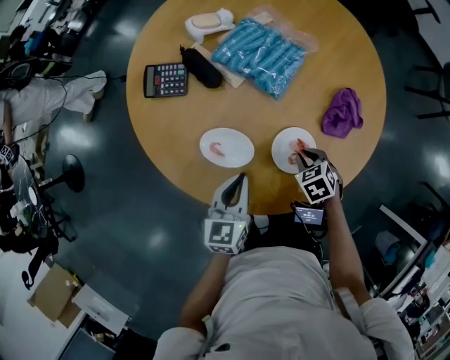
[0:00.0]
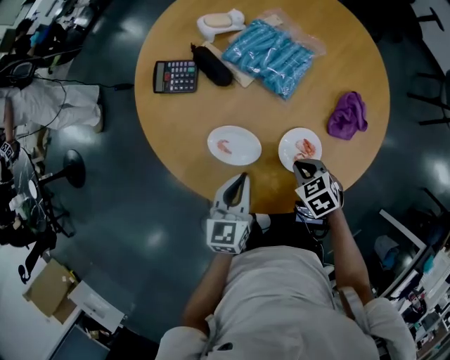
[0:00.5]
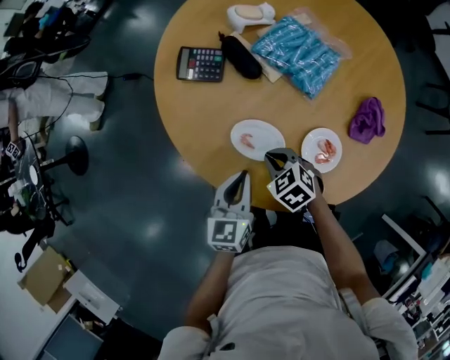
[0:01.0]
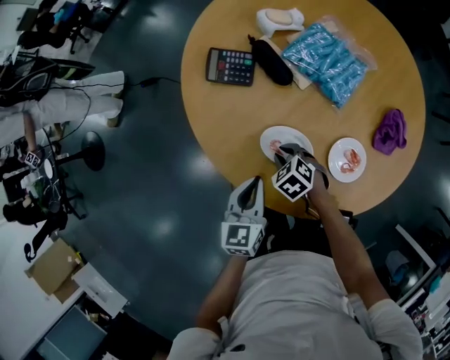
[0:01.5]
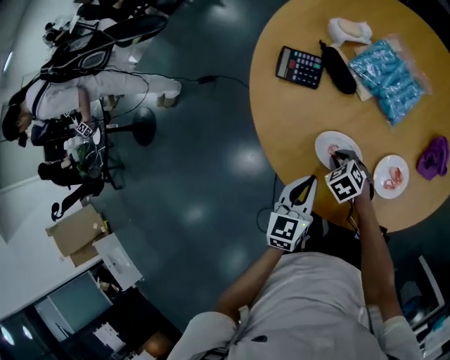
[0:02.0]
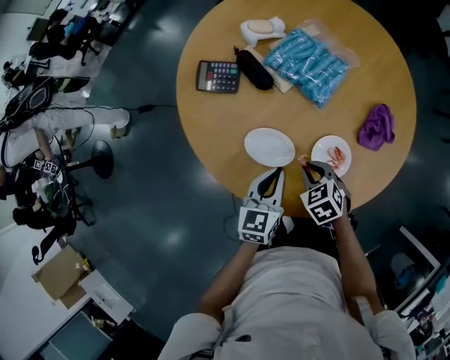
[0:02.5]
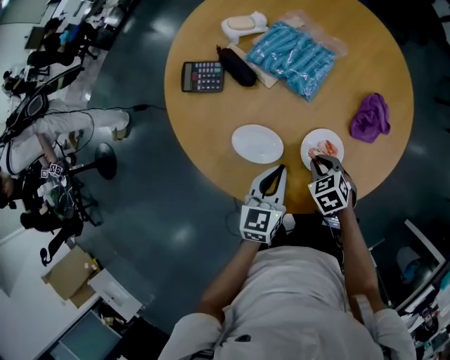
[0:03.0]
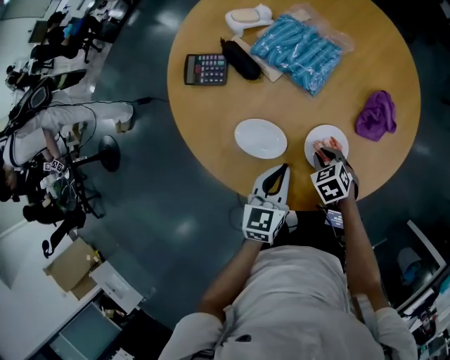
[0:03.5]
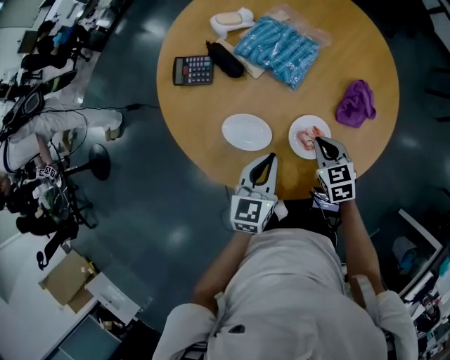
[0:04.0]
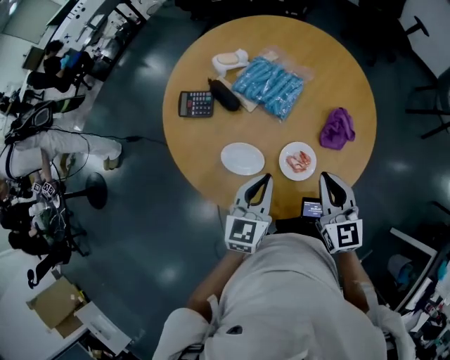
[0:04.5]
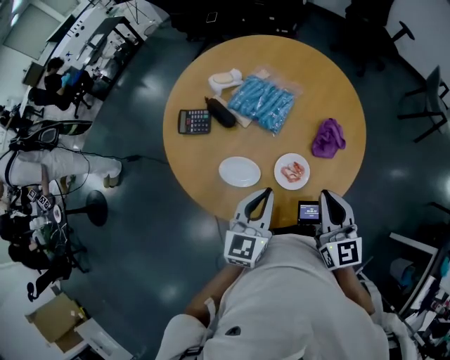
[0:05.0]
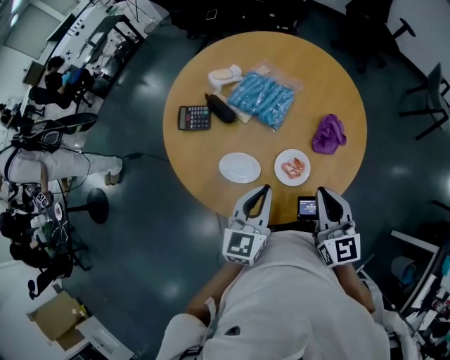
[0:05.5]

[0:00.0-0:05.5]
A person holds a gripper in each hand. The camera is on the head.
0:00.0 to 0:02.0: The left gripper shifts roughly 15 cm to the left, while the right gripper shifts roughly 25 cm to the left.
0:02.0 to 0:03.5: Both grippers move to the right, roughly 20 cm.
0:03.5 to 0:05.5: The right gripper moves upward, some 30 cm, and tilts its fingers some 60 degrees upward; the left gripper is displaced upward by approximately 15 cm.

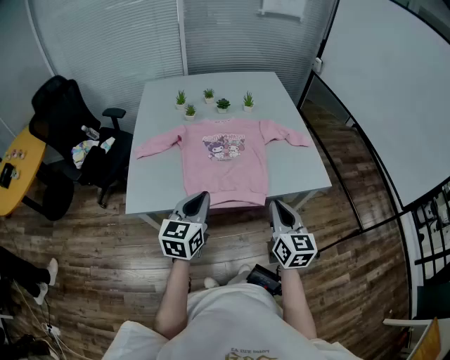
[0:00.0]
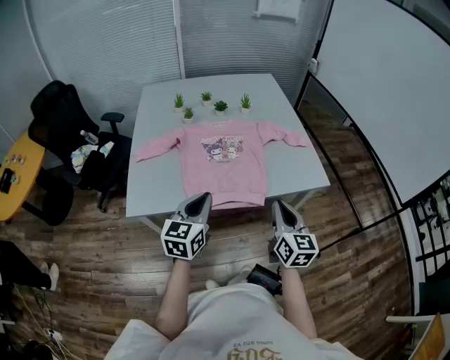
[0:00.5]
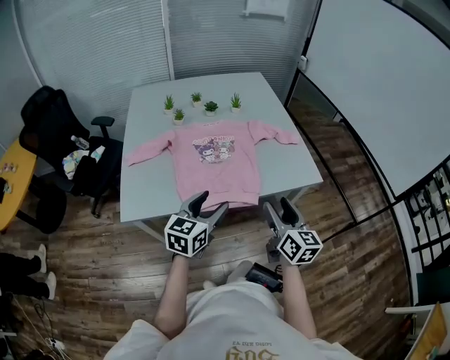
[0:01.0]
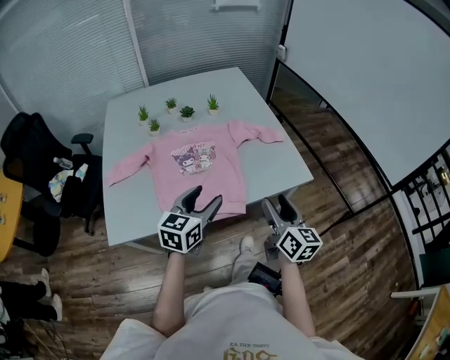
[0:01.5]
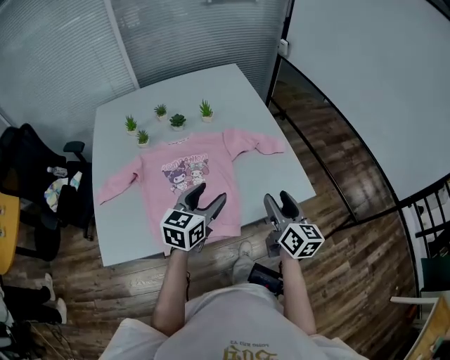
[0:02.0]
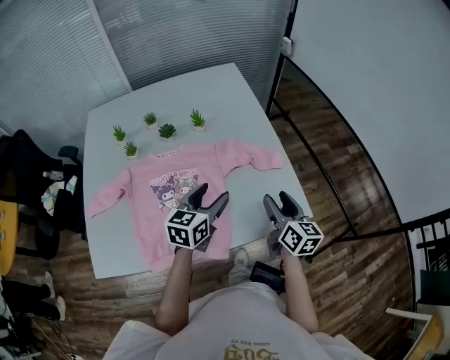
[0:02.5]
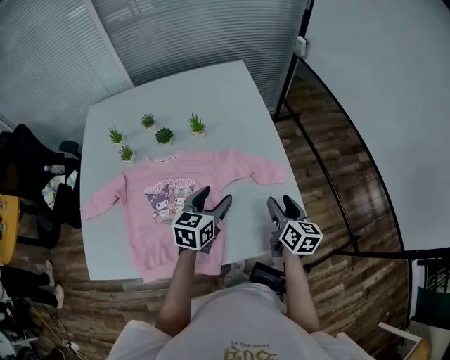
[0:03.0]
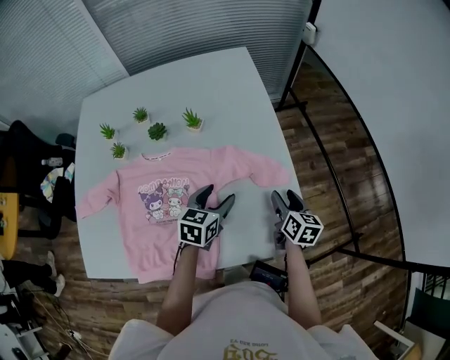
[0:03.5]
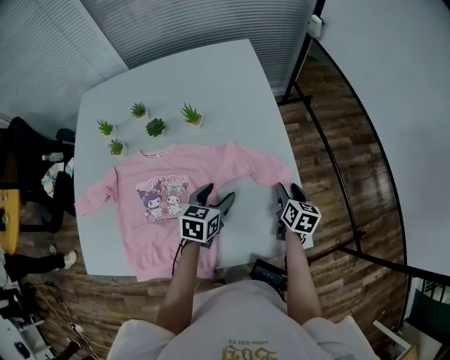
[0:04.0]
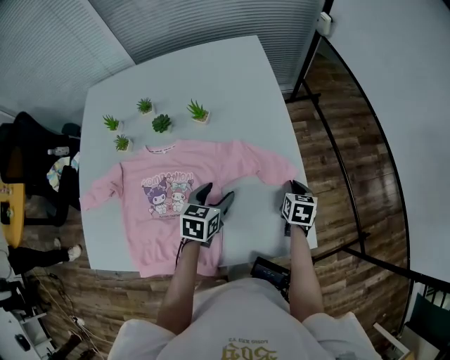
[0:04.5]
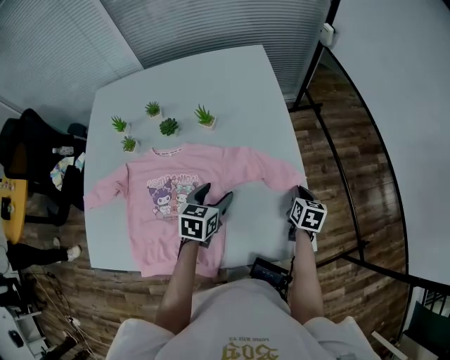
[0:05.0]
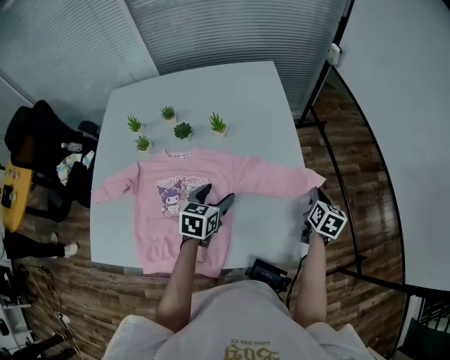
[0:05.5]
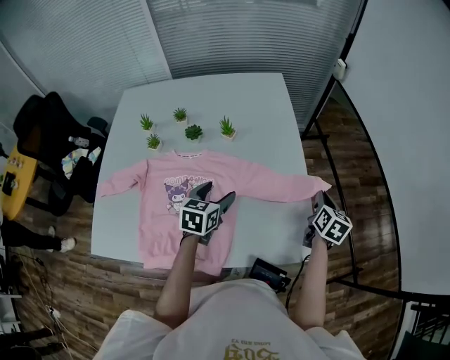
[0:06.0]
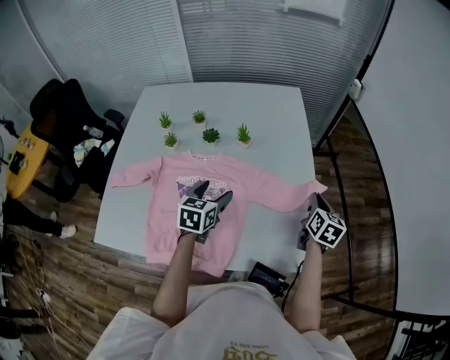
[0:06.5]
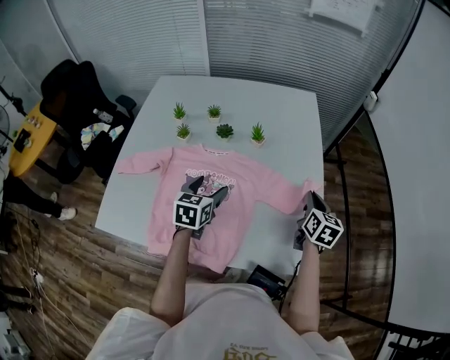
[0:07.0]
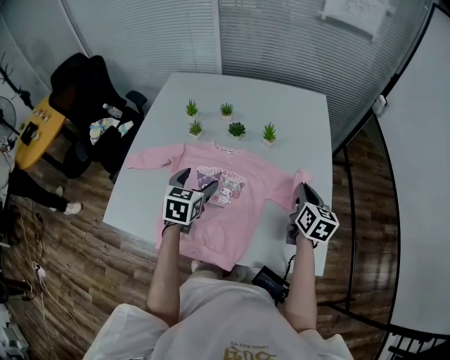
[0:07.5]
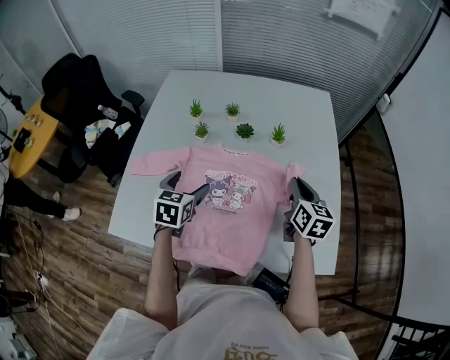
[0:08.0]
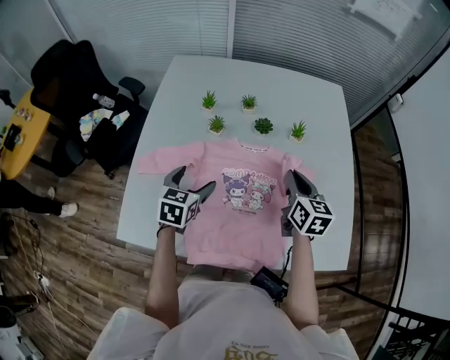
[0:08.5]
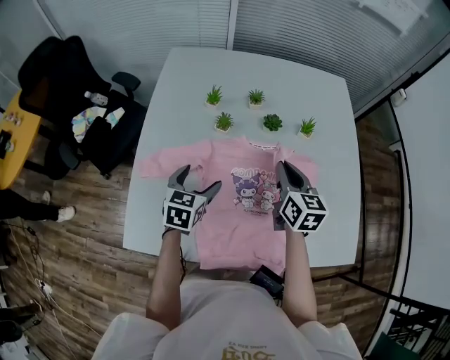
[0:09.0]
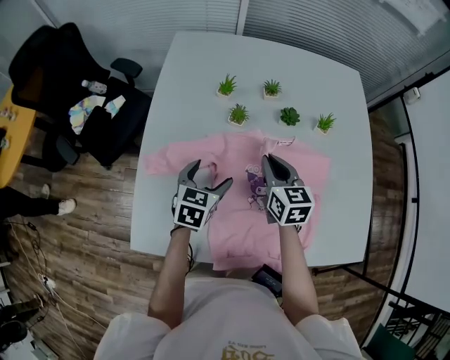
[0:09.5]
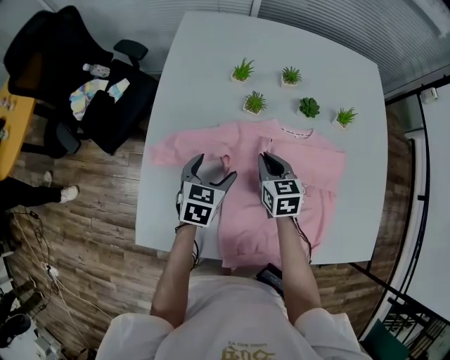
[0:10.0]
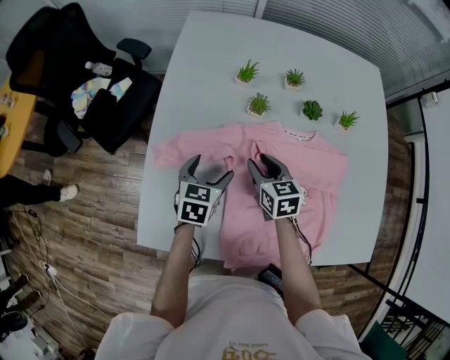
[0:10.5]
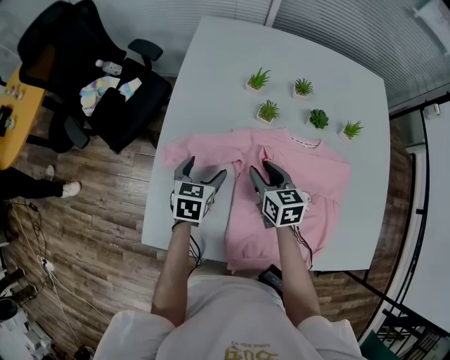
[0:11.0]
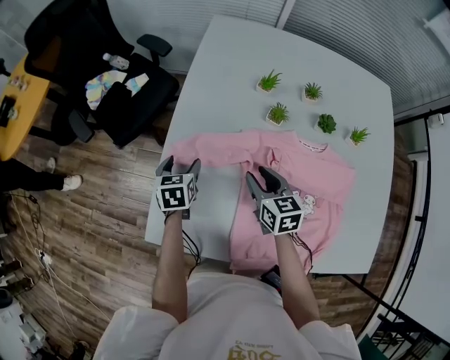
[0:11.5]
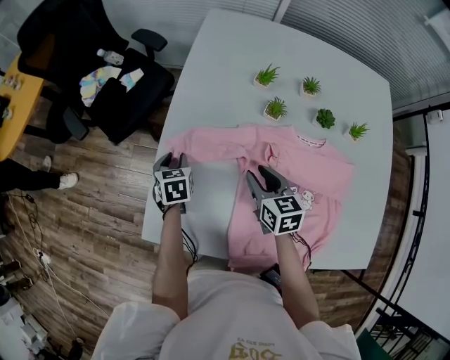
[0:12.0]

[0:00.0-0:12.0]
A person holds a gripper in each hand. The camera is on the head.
0:00.0 to 0:02.0: The two grippers go approximately 25 cm forward and to the right. The right gripper opens its fingers. The left gripper opens.
0:02.0 to 0:04.0: The grippers both shift forward and downward by some 30 cm. The left gripper swivels about 20 degrees. The right gripper turns by roughly 30 degrees.
0:04.0 to 0:06.0: The left gripper heads upward and to the left, covering approximately 10 cm. The right gripper travels upward by approximately 10 cm, and closes up.
0:06.0 to 0:08.0: The two grippers go approximately 30 cm to the left. The right gripper rotates approximately 30 degrees.
0:08.0 to 0:10.0: The right gripper heads to the left and downward, covering about 35 cm, and rotates approximately 20 degrees. The left gripper goes about 20 cm to the left, downward and forward.
0:10.0 to 0:12.0: The right gripper heads to the left, covering roughly 10 cm, and opens; the left gripper is displaced to the left by about 20 cm, turns by about 30 degrees, and closes its fingers.

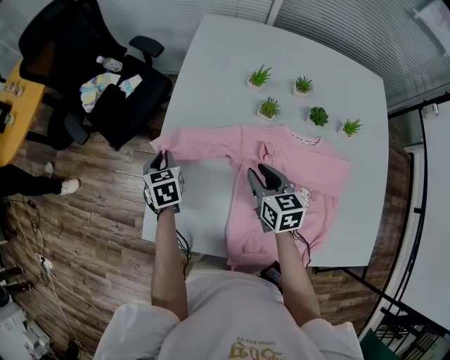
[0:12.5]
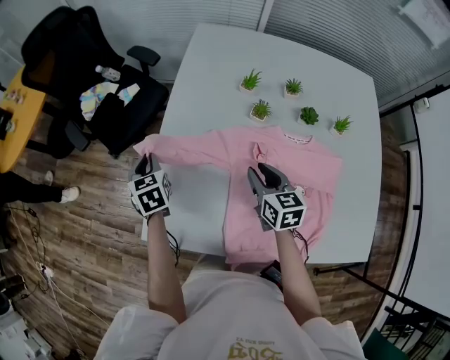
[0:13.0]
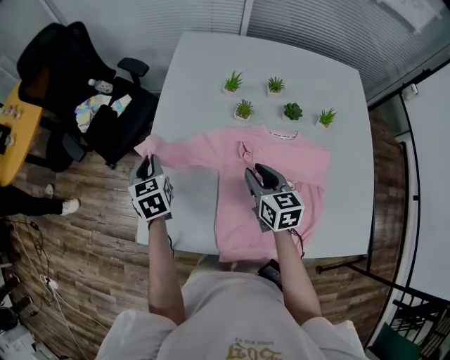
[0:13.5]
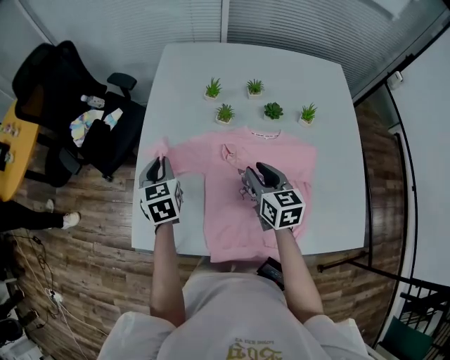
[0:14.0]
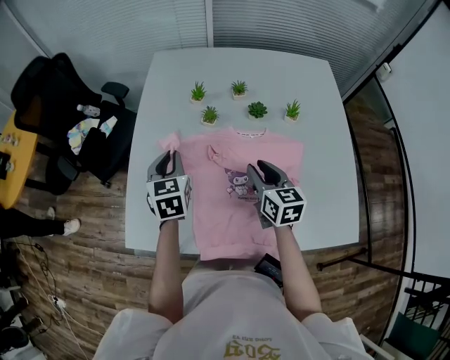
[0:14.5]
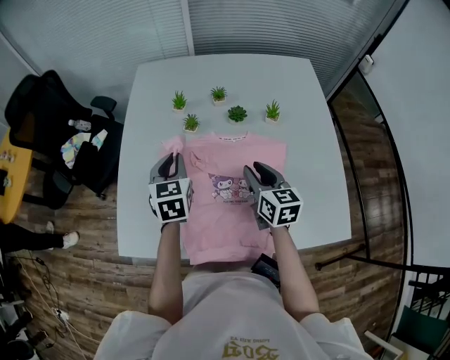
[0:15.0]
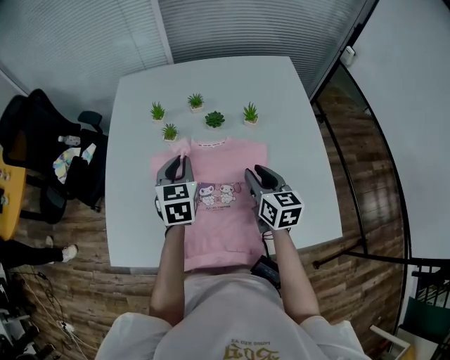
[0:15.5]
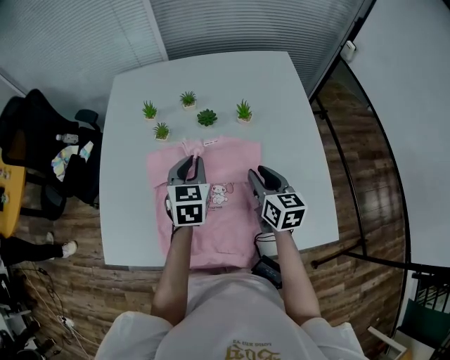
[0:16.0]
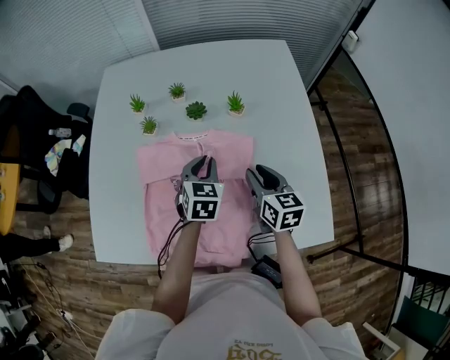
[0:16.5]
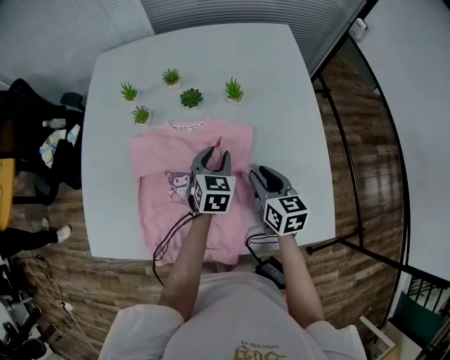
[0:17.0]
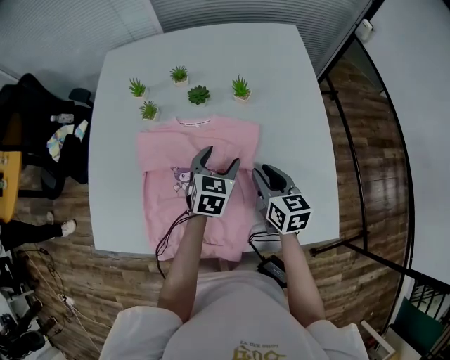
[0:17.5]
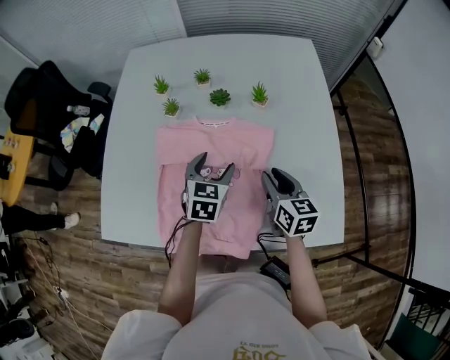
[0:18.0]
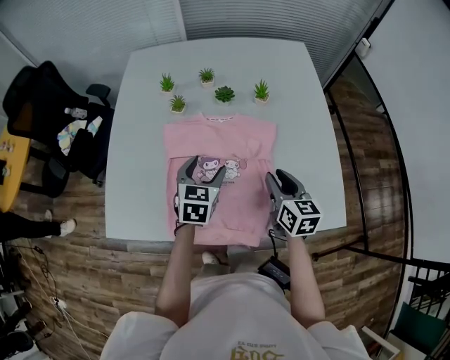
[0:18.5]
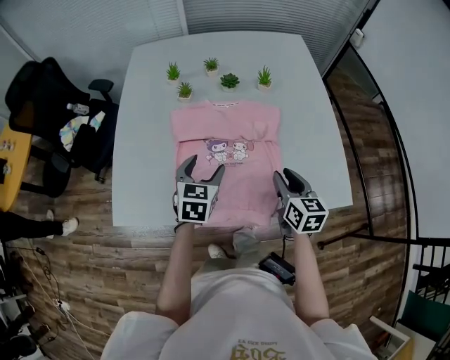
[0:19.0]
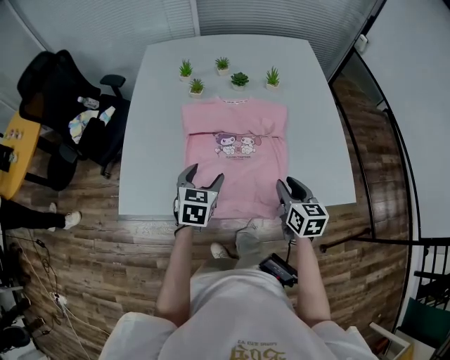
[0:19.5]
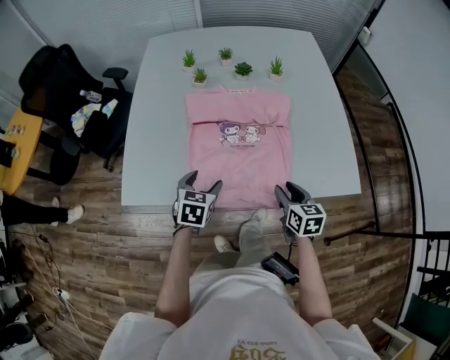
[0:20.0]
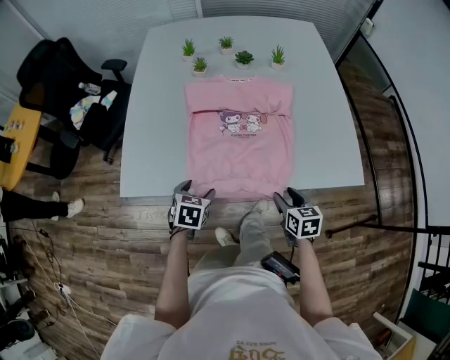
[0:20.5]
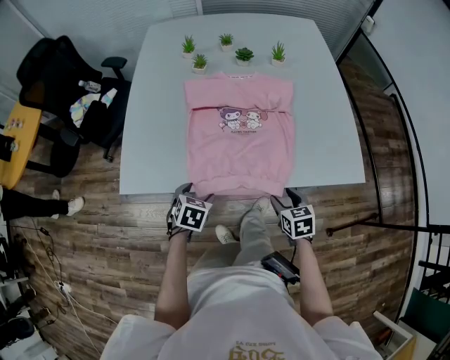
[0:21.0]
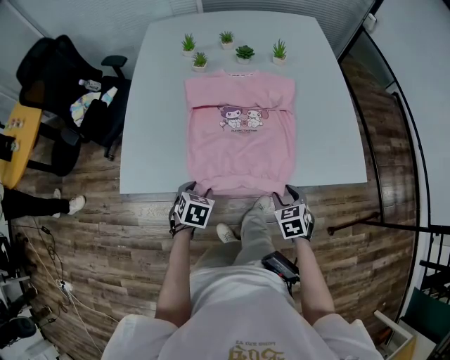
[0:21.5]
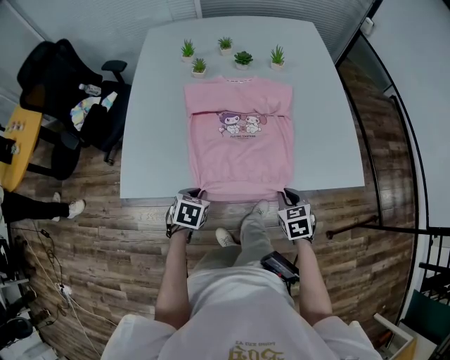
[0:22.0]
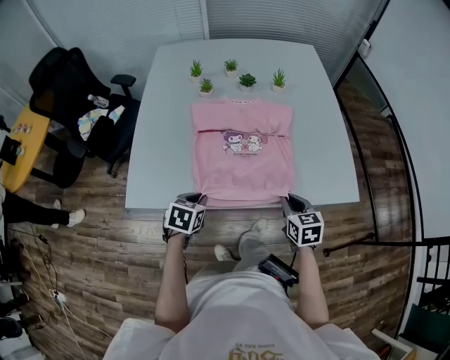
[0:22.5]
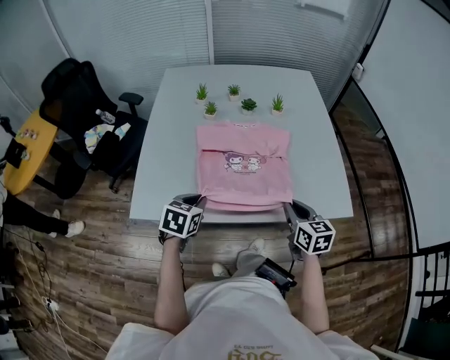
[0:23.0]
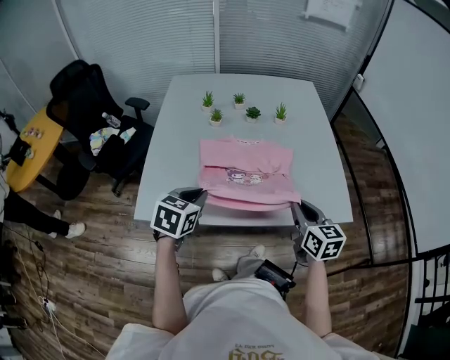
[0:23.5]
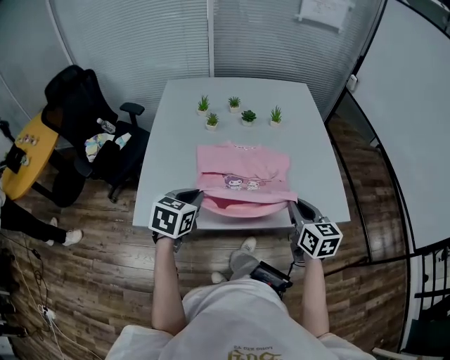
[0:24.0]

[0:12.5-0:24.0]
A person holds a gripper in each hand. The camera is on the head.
0:12.5 to 0:14.5: The right gripper moves to the right, upward and backward, some 20 cm, while the left gripper travels to the right and upward by roughly 25 cm, and rotates approximately 20 degrees.
0:14.5 to 0:16.5: The right gripper shifts about 20 cm to the right; the left gripper shifts roughly 30 cm to the right, and rotates approximately 20 degrees.
0:16.5 to 0:18.5: The left gripper travels to the left and backward by some 15 cm, and opens its fingers. Meanwhile the right gripper shifts approximately 10 cm backward.
0:18.5 to 0:20.0: The left gripper goes approximately 20 cm backward, to the left and downward. Meanwhile the right gripper travels backward and downward by approximately 20 cm.
0:20.0 to 0:22.0: The right gripper is displaced downward by roughly 5 cm, changes its angle by approximately 30 degrees, and closes. The left gripper heads downward and backward, covering some 10 cm, and closes its fingers.
0:22.0 to 0:24.0: The grippers both shift upward by approximately 20 cm. The left gripper turns by approximately 20 degrees, while the right gripper changes its angle by roughly 30 degrees.
